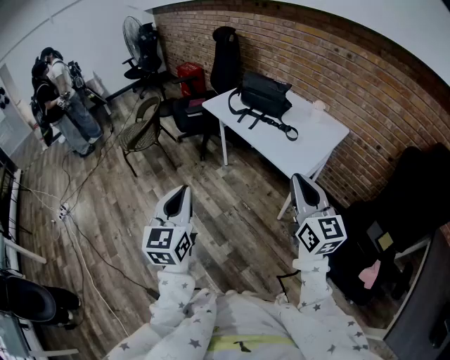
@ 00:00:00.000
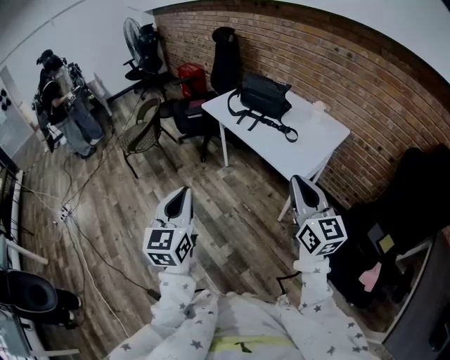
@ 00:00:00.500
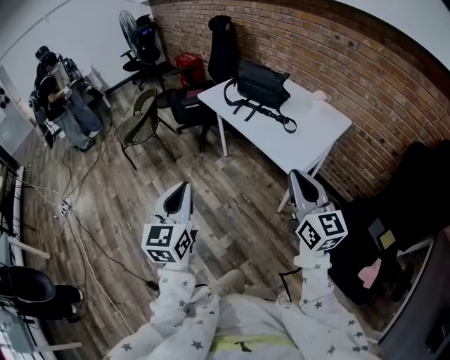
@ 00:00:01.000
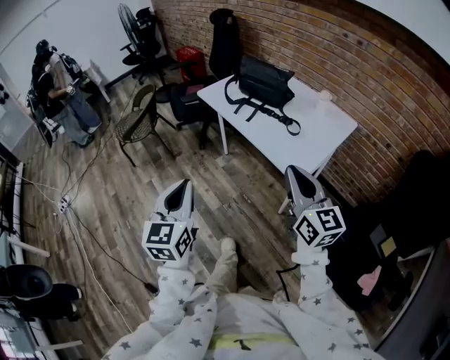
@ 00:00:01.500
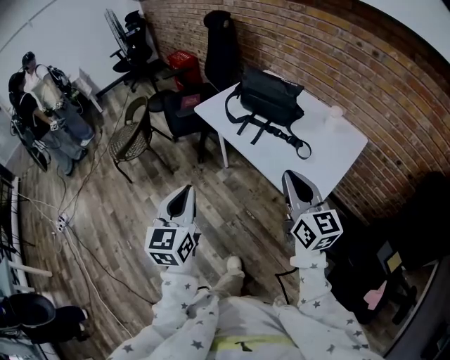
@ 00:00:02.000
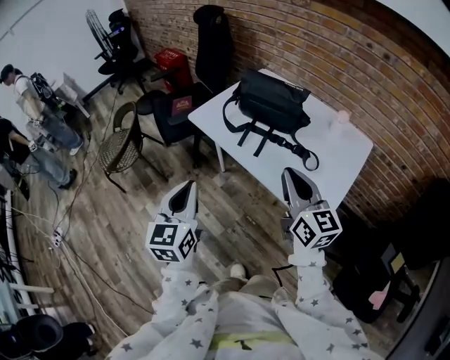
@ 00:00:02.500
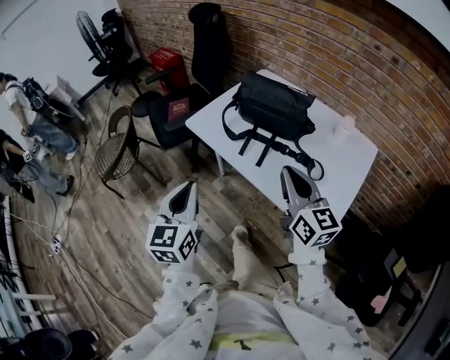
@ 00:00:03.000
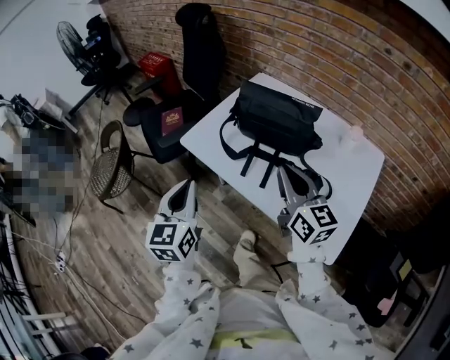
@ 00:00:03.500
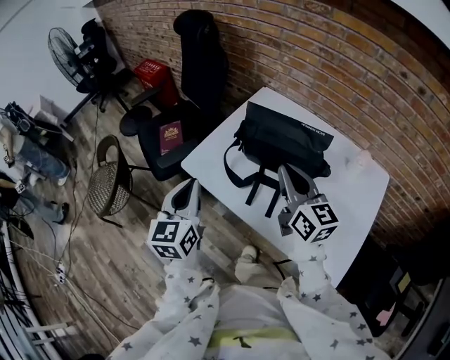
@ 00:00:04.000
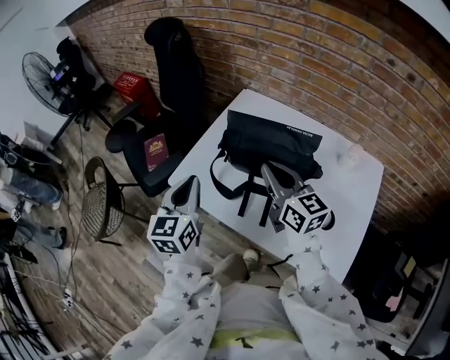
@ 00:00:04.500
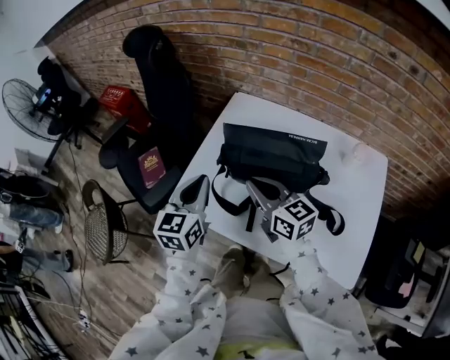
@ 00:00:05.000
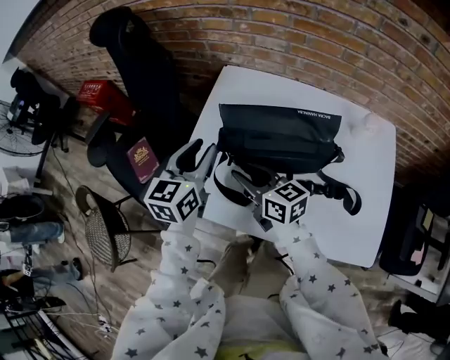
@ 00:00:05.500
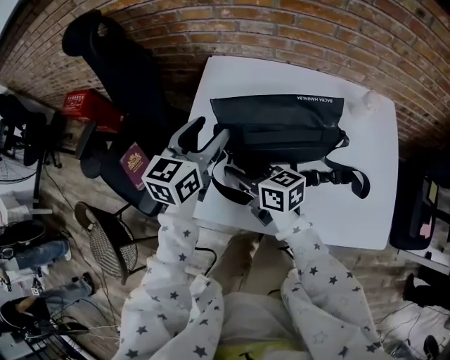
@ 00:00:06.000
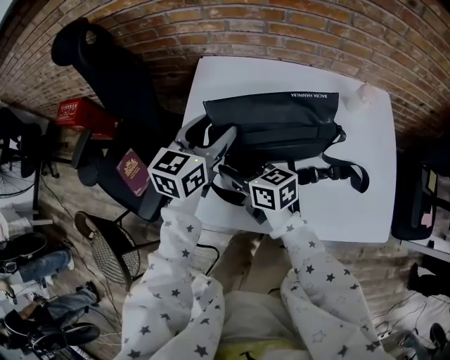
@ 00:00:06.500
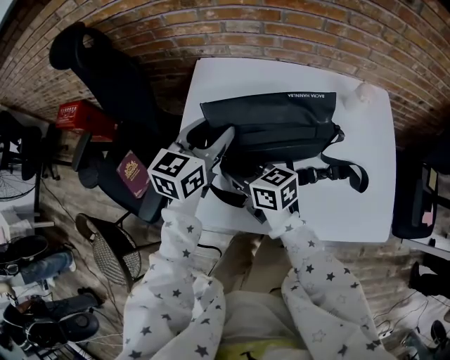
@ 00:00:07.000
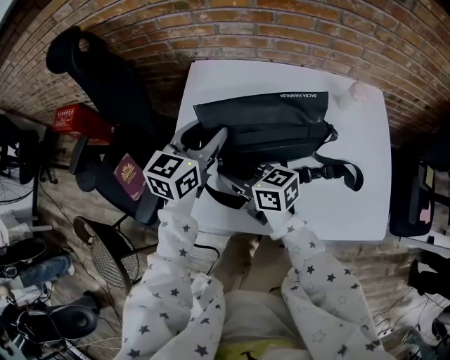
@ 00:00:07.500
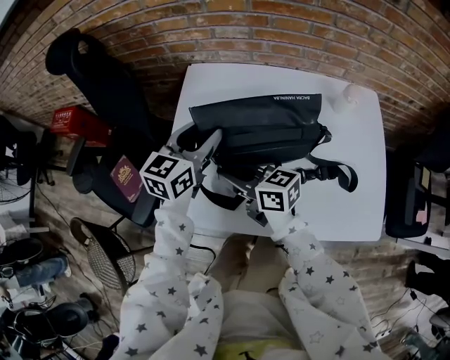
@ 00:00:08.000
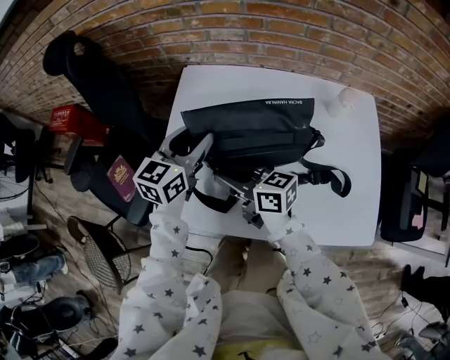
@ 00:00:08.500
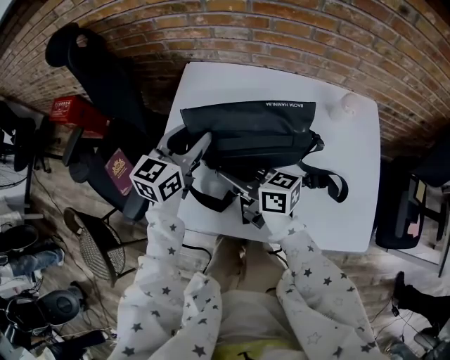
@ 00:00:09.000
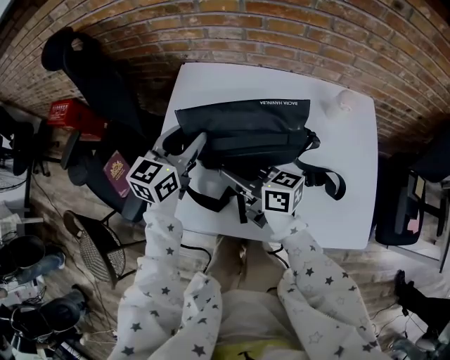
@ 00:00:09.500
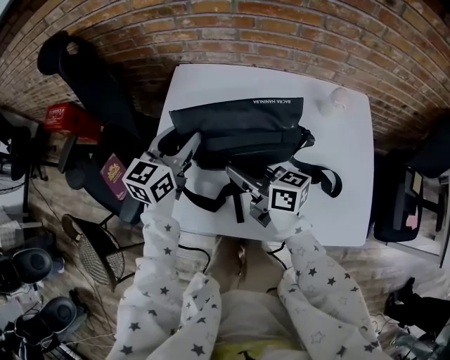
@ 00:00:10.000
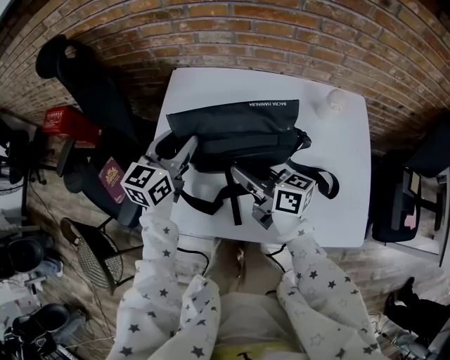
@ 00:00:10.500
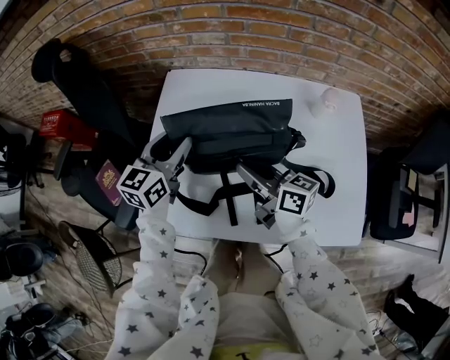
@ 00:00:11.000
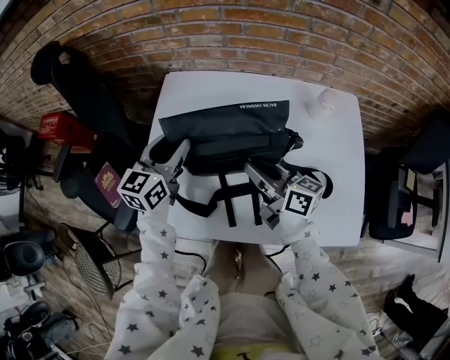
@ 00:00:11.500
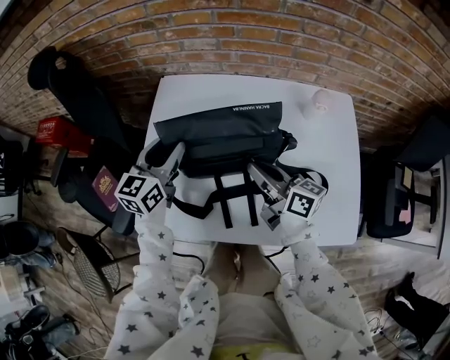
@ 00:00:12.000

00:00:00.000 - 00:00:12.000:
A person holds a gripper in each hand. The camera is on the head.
00:00:00.000 - 00:00:02.000: The two grippers go roughly 20 cm forward.
00:00:02.000 - 00:00:04.000: The grippers both shift forward by approximately 40 cm.
00:00:04.000 - 00:00:06.000: The left gripper is displaced forward and to the right by roughly 30 cm, changes its angle by approximately 40 degrees, and opens, while the right gripper heads downward, forward and to the left, covering roughly 25 cm, changes its angle by some 30 degrees, and opens.
00:00:06.000 - 00:00:08.000: The left gripper is displaced to the right by roughly 5 cm. Meanwhile the right gripper closes.
00:00:08.000 - 00:00:10.000: The right gripper shifts some 5 cm to the right.
00:00:10.000 - 00:00:12.000: The right gripper is displaced to the right by some 10 cm.

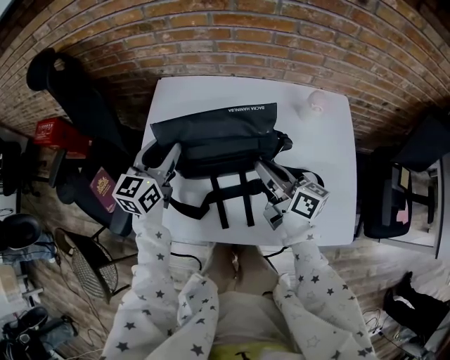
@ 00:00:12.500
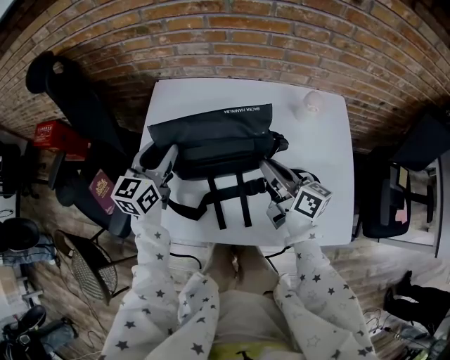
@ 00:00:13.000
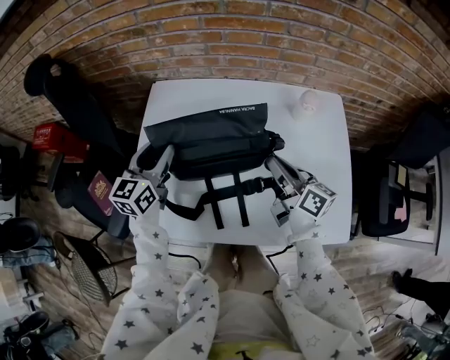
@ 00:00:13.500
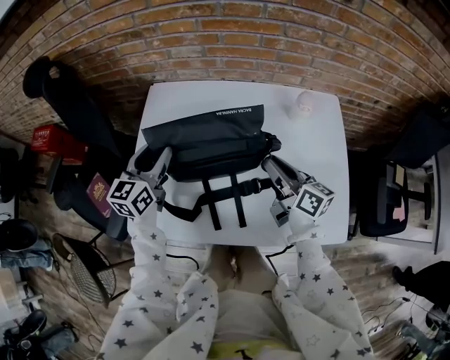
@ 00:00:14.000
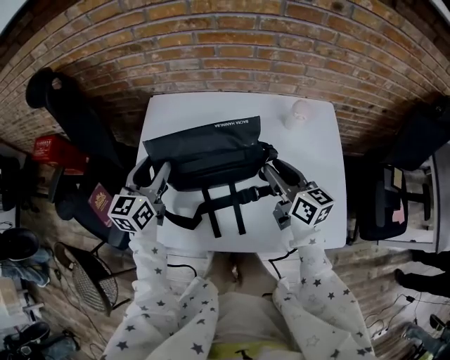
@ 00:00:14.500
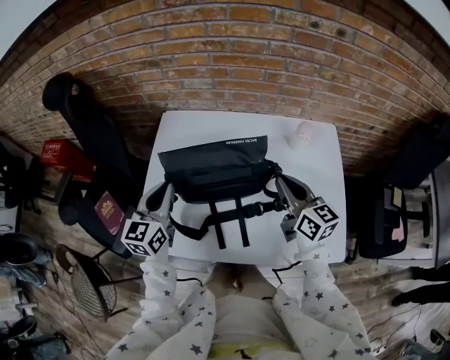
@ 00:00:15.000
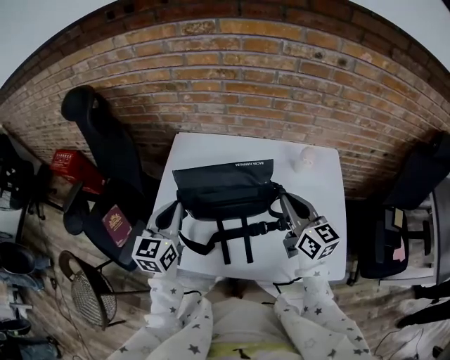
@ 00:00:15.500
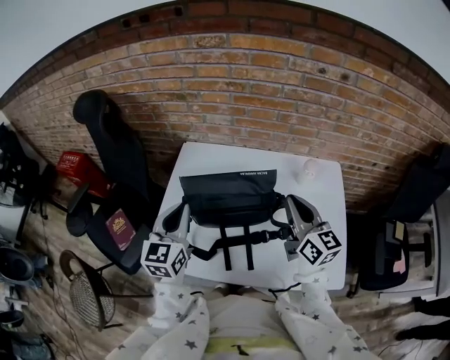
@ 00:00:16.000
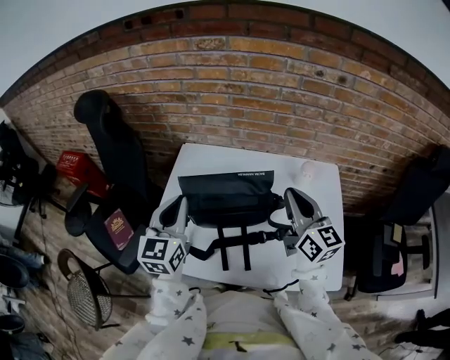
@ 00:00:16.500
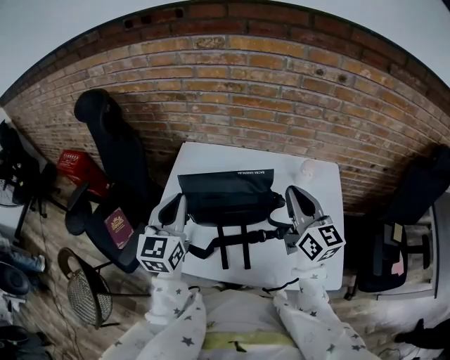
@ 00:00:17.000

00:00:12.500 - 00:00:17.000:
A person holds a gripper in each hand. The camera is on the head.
00:00:12.500 - 00:00:14.500: The right gripper moves to the right, approximately 5 cm, turns by some 20 degrees, and opens.
00:00:14.500 - 00:00:17.000: The left gripper moves upward and backward, some 15 cm, and closes. The right gripper heads upward, covering approximately 15 cm, turns by some 20 degrees, and closes.

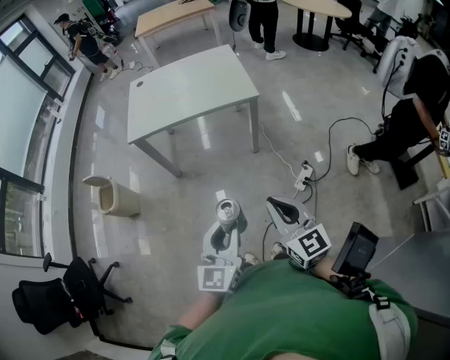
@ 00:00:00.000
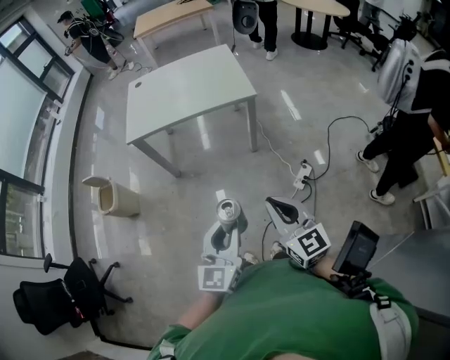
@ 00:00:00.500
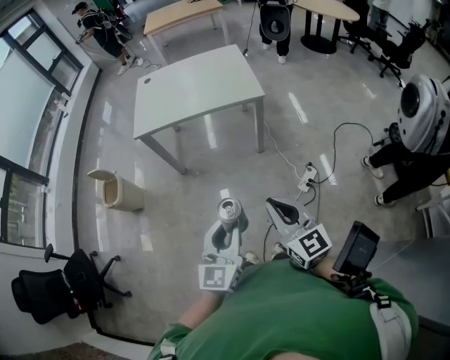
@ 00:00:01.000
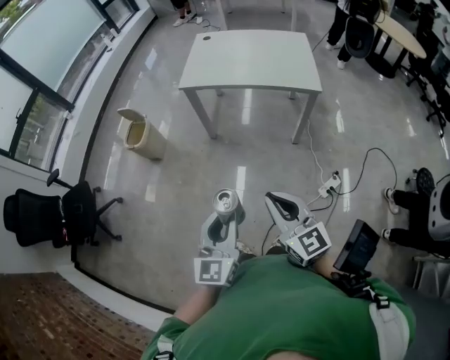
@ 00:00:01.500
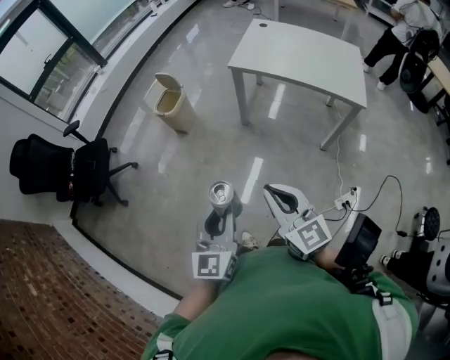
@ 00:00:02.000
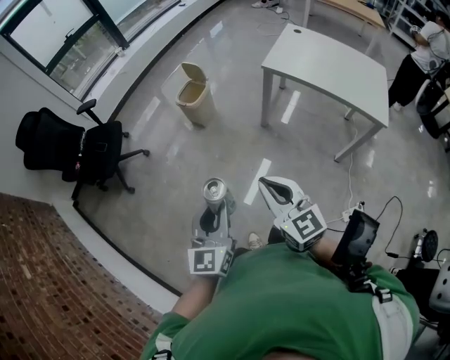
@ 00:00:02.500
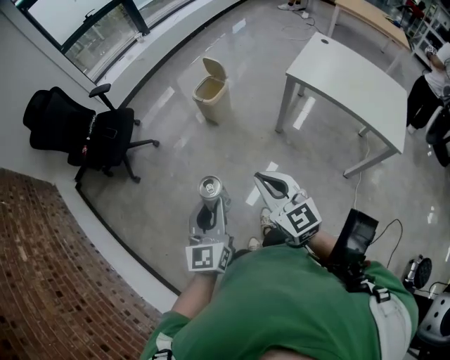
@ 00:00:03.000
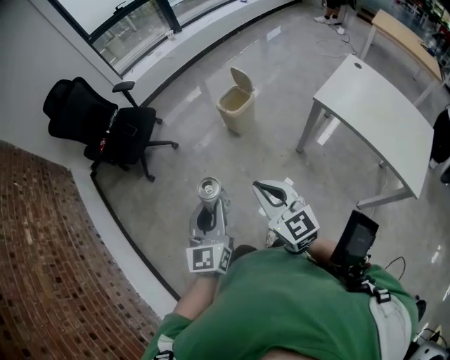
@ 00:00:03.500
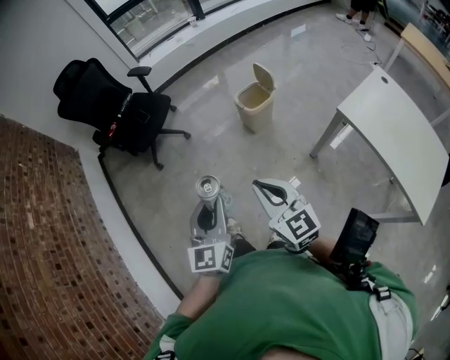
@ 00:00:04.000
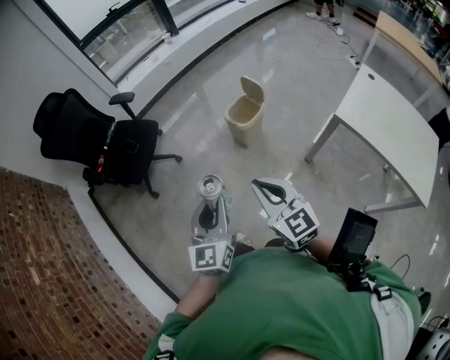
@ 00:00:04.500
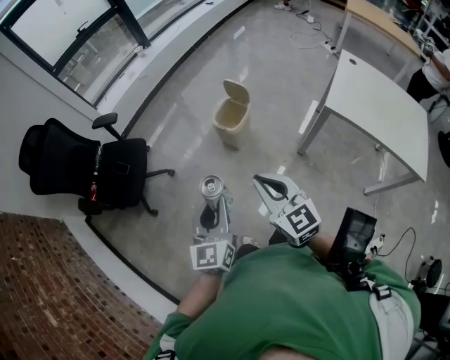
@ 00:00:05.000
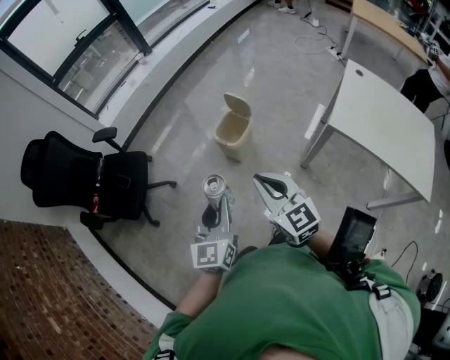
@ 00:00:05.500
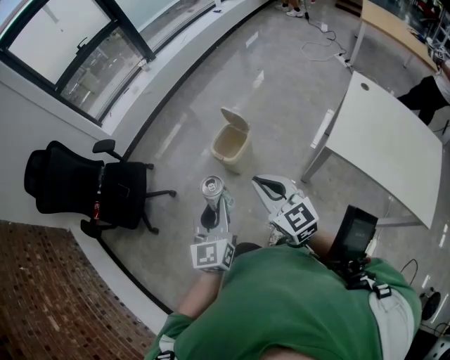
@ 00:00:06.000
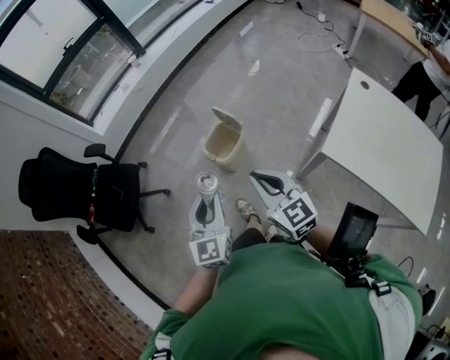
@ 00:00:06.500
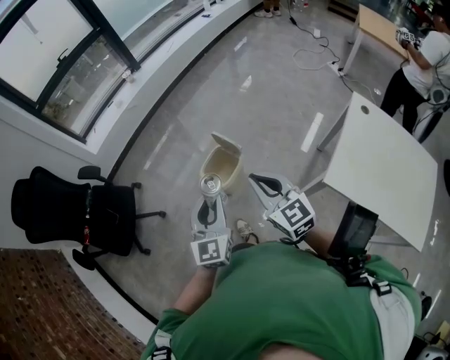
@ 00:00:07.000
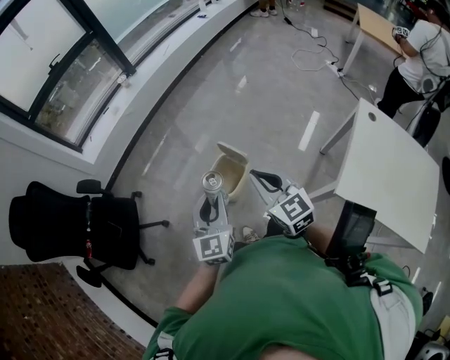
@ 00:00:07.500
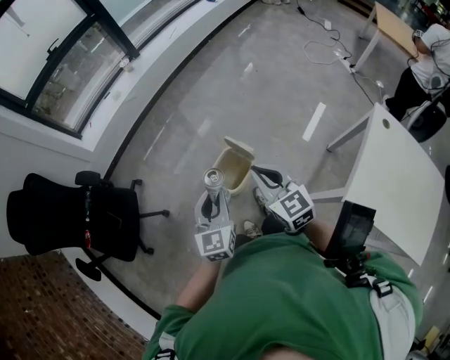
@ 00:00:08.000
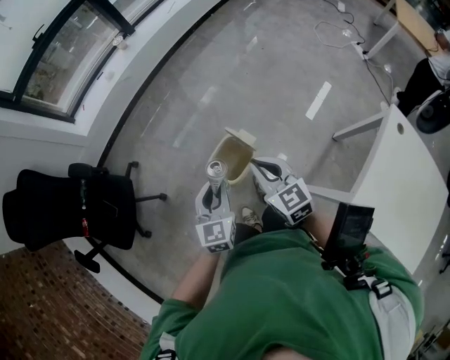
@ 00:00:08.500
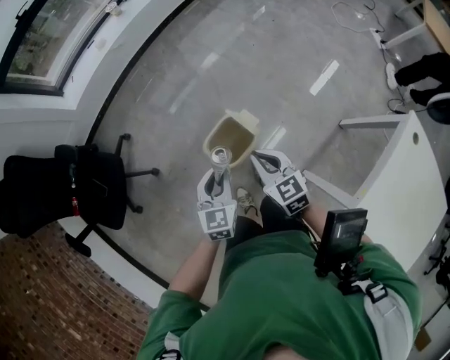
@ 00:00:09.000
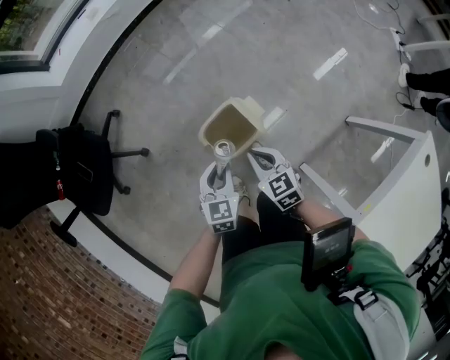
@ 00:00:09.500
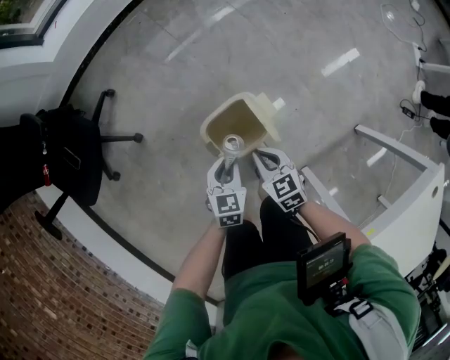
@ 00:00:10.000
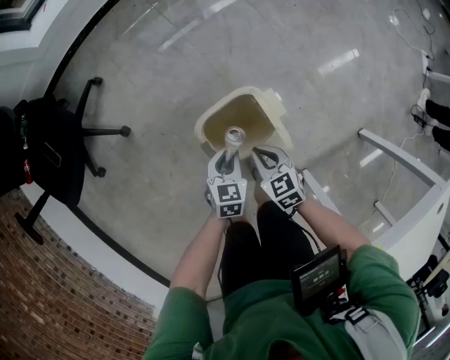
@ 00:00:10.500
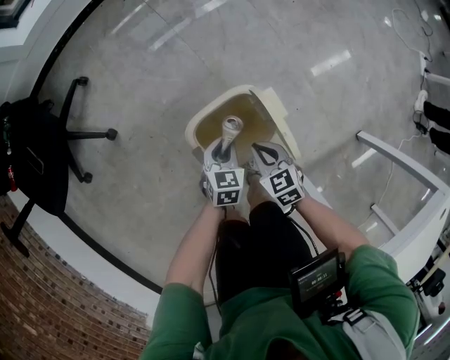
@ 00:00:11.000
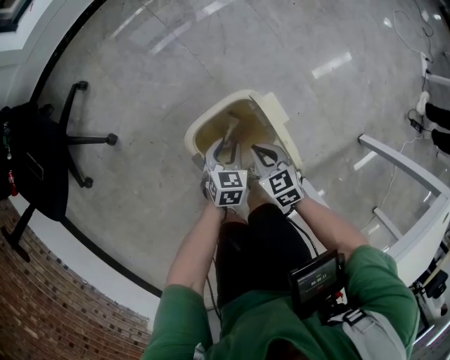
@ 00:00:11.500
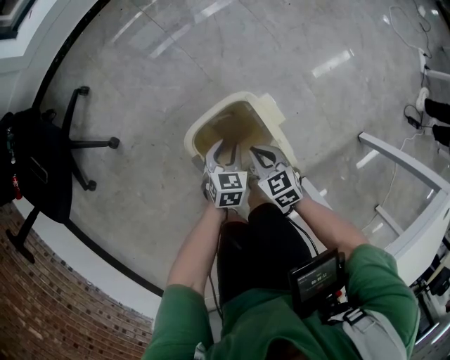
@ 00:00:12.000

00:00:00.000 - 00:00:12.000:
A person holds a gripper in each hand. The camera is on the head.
00:00:00.000 - 00:00:02.000: The right gripper changes place by approximately 25 cm, and turns by some 40 degrees. Meanwhile the left gripper moves approximately 25 cm, and rotates approximately 40 degrees.
00:00:02.000 - 00:00:04.000: The left gripper changes place by about 30 cm, and changes its angle by roughly 40 degrees, while the right gripper ends up about 35 cm from where it was, and rotates about 40 degrees.
00:00:04.000 - 00:00:06.000: The grippers both shift forward by some 30 cm.
00:00:06.000 - 00:00:08.000: The two grippers go some 30 cm forward.
00:00:08.000 - 00:00:10.000: Both grippers travel together downward, about 35 cm. The left gripper points its fingers approximately 30 degrees further downward. The right gripper rotates about 40 degrees.
00:00:10.000 - 00:00:12.000: The two grippers go approximately 20 cm downward. The left gripper opens.
